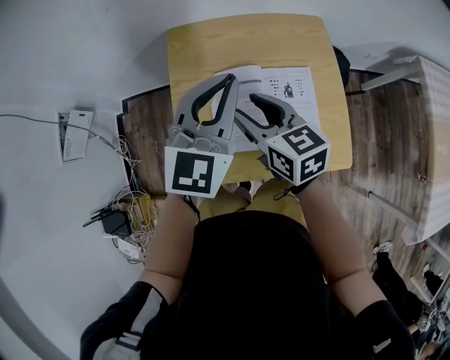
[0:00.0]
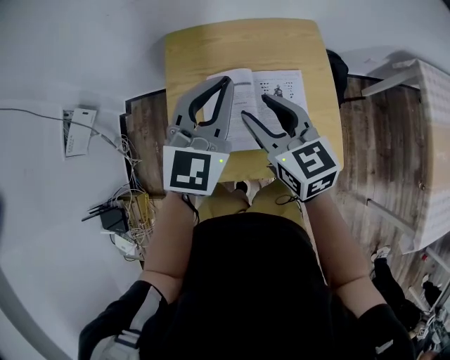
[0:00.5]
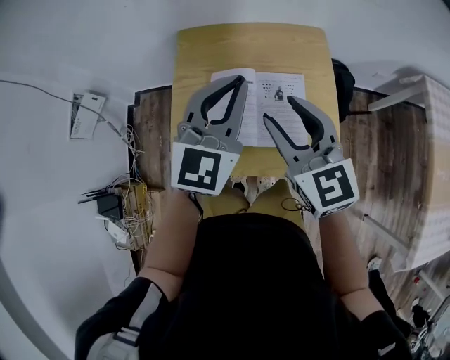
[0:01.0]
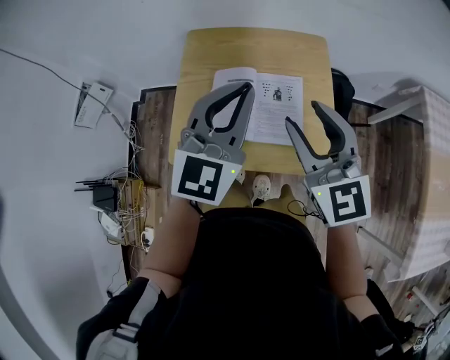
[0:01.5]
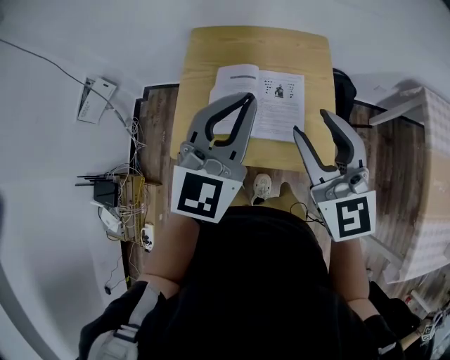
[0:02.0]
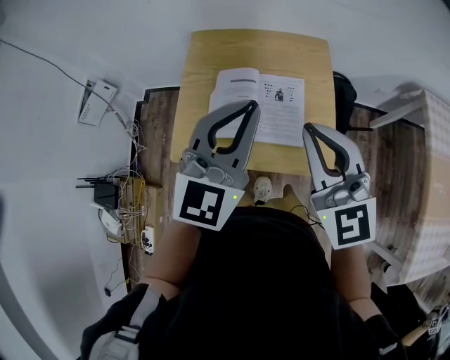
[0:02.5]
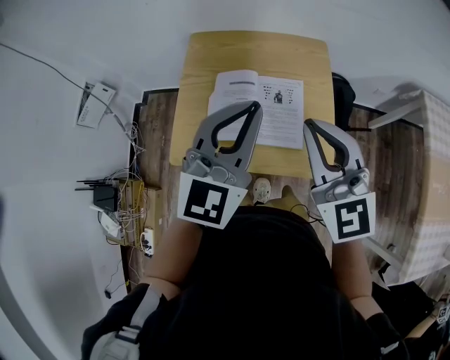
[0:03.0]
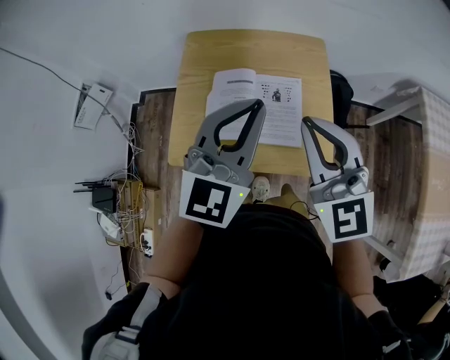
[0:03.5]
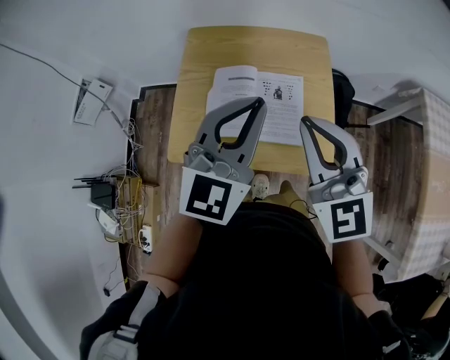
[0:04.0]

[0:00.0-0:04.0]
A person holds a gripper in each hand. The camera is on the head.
0:00.0 to 0:02.0: The left gripper travels backward, to the right and upward by some 15 cm. The right gripper is displaced to the right, upward and backward by some 25 cm, and swivels some 40 degrees.
0:02.0 to 0:04.0: The right gripper closes its fingers.

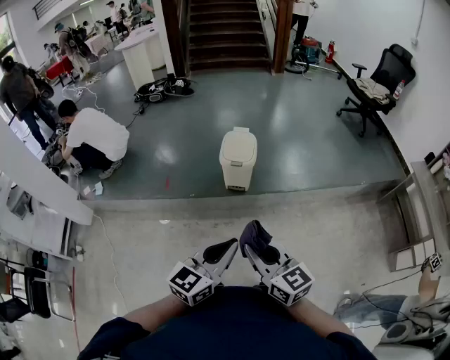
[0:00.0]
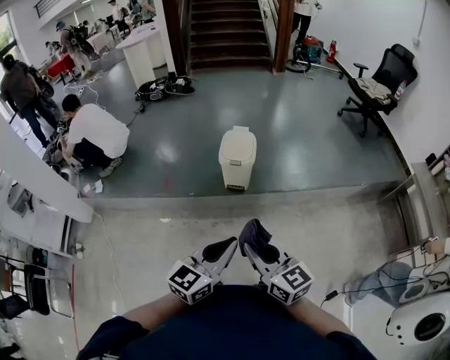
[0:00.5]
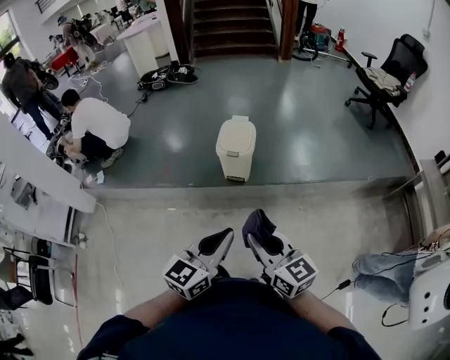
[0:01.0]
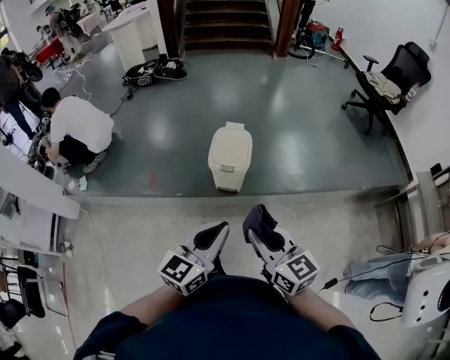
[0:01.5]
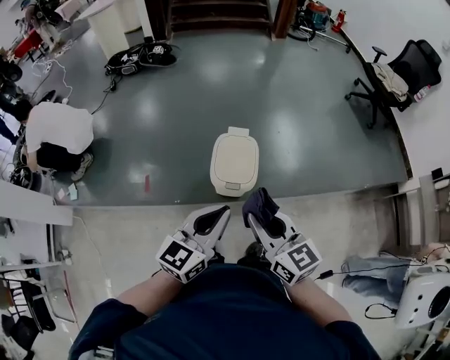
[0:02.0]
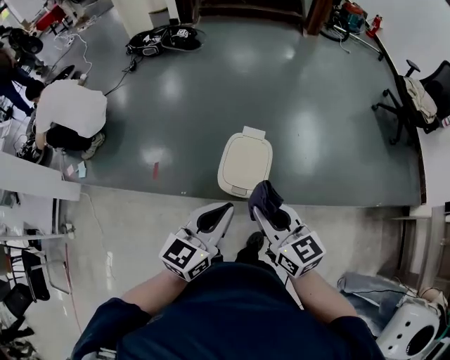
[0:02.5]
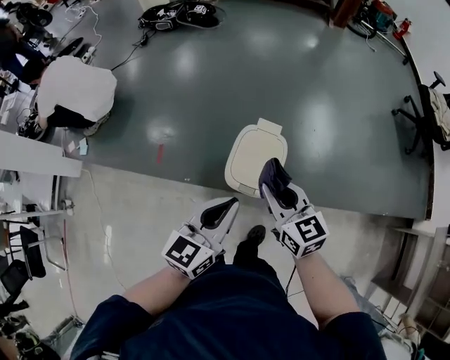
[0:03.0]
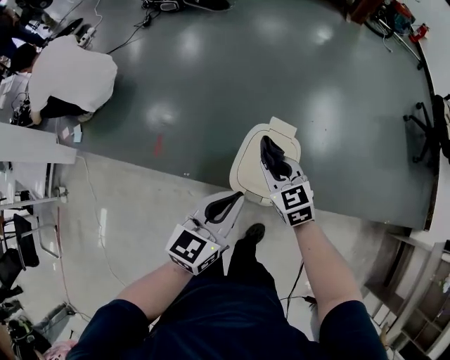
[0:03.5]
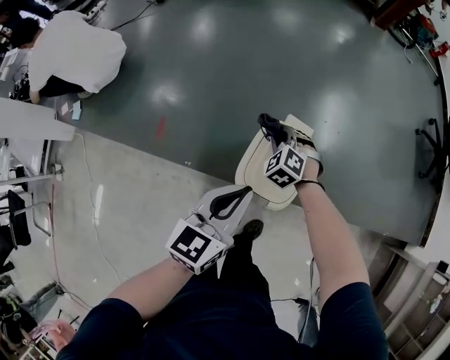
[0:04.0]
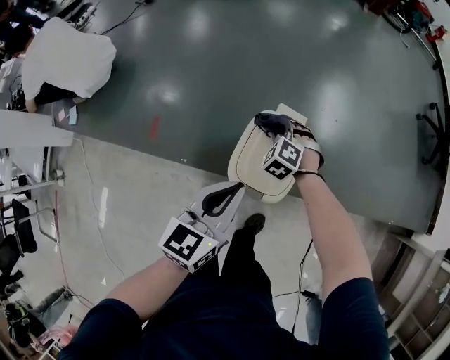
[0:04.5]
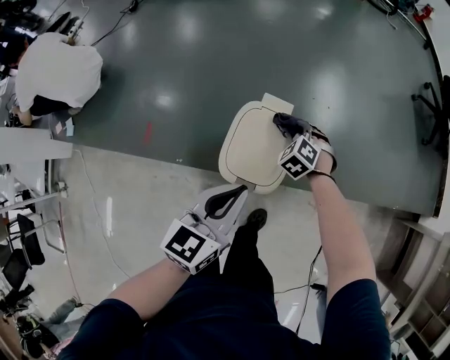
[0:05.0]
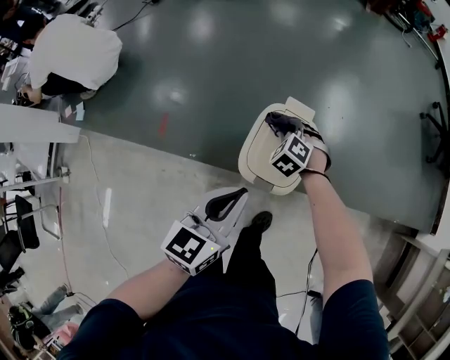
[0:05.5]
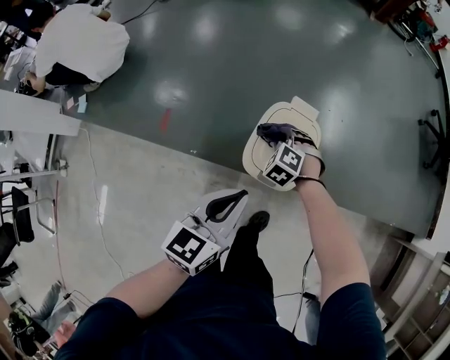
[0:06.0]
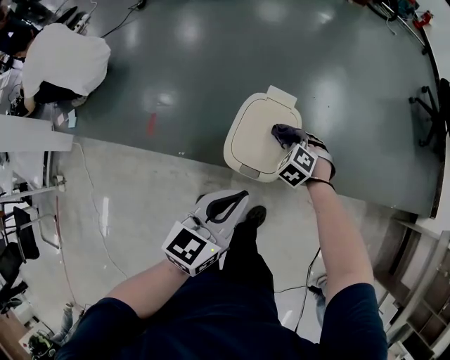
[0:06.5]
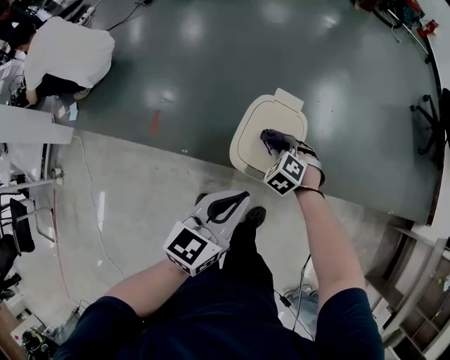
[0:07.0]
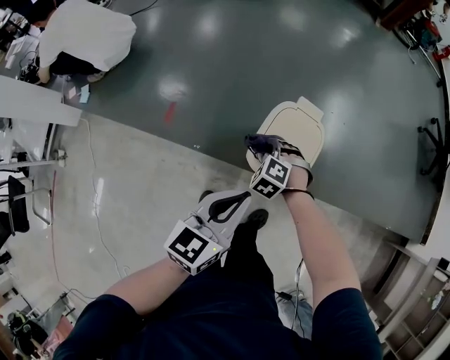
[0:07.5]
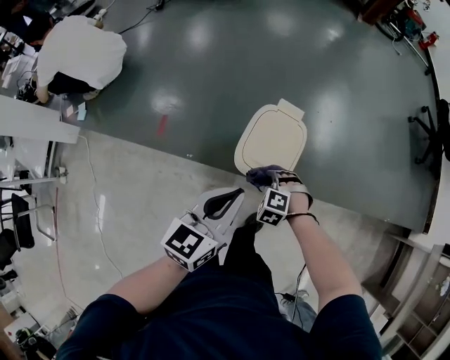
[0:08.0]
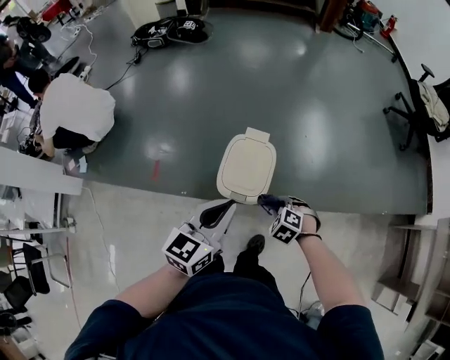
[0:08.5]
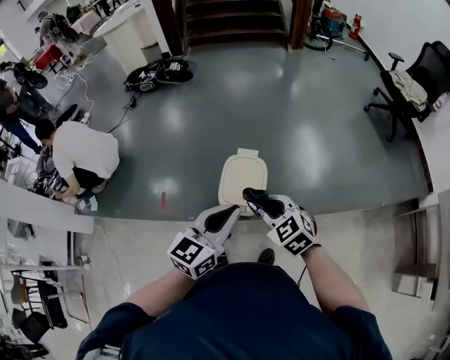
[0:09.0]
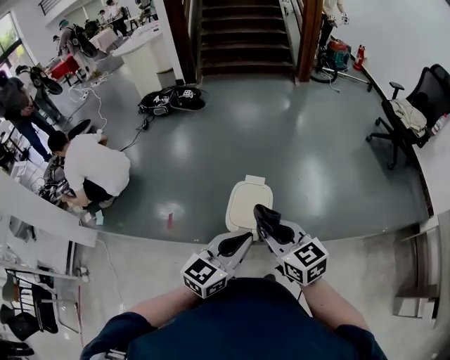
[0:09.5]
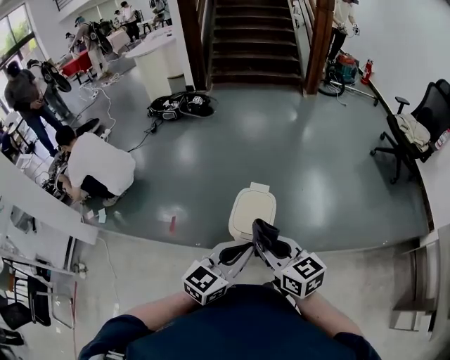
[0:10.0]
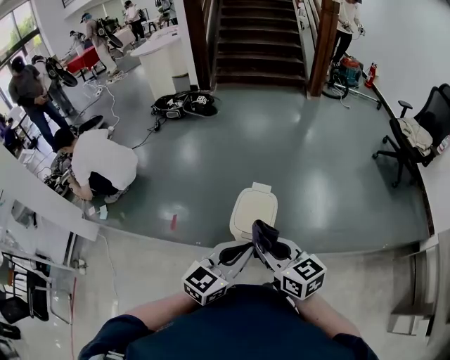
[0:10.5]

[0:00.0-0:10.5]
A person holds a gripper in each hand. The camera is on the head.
0:00.0 to 0:02.0: Both grippers travel together forward, about 40 cm.
0:02.0 to 0:04.0: The right gripper goes about 50 cm forward and downward, and rolls counterclockwise, seen from behind, by some 60 degrees; the left gripper is displaced forward and downward by about 25 cm, and turns by approximately 20 degrees.
0:04.0 to 0:06.5: The right gripper moves left and right over about 15 cm, changing direction 2 times. The left gripper goes about 10 cm backward and to the right.
0:06.5 to 0:08.5: The left gripper heads upward, covering approximately 10 cm. The right gripper shifts some 15 cm backward and upward, and moves some 15 cm to the left and comes back.
0:08.5 to 0:10.5: The left gripper goes about 15 cm backward and upward, while the right gripper moves upward, about 35 cm, and tilts its fingers approximately 50 degrees upward.

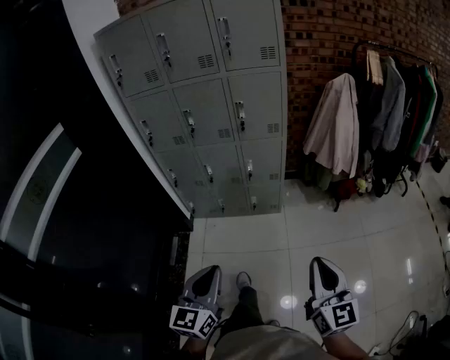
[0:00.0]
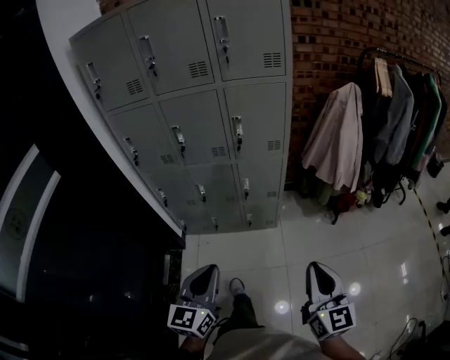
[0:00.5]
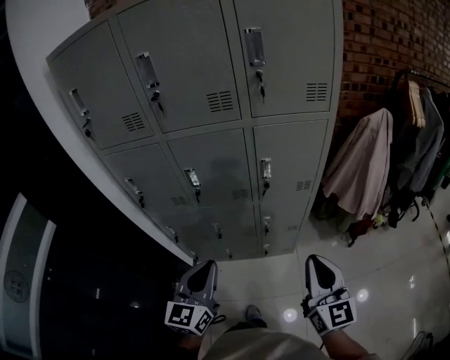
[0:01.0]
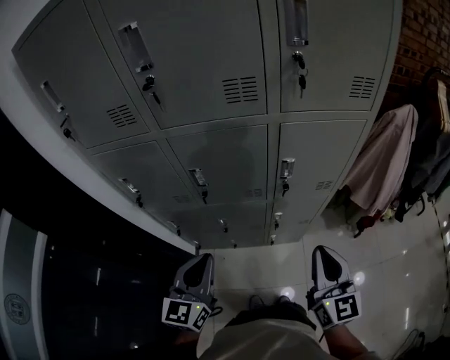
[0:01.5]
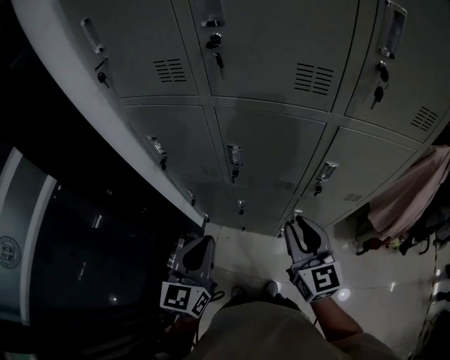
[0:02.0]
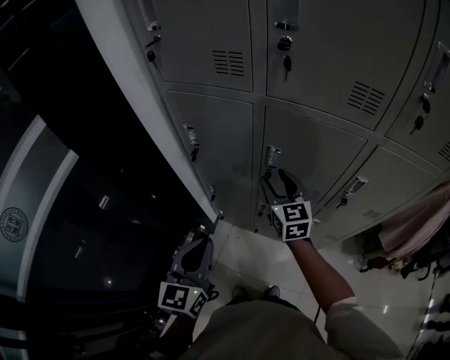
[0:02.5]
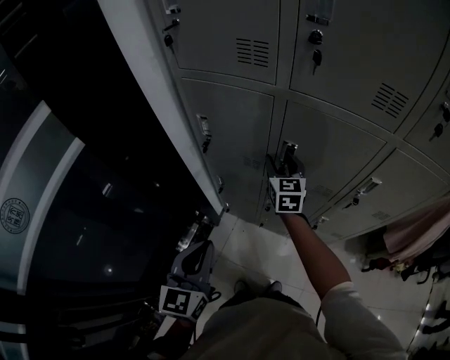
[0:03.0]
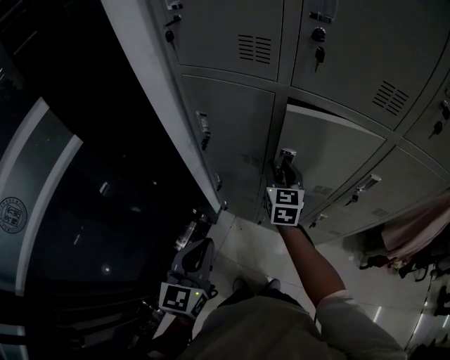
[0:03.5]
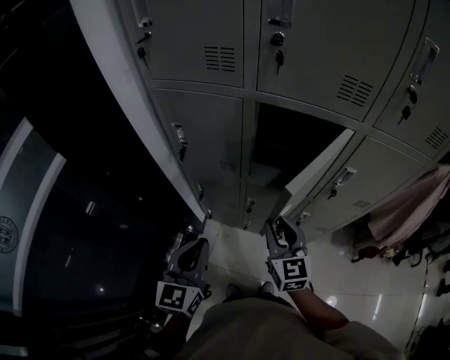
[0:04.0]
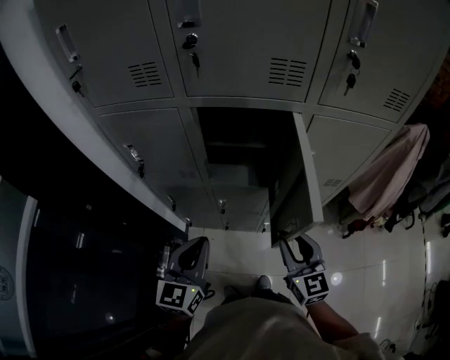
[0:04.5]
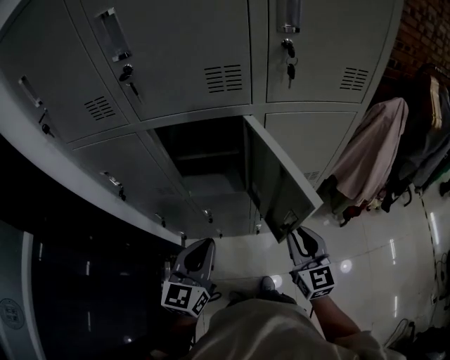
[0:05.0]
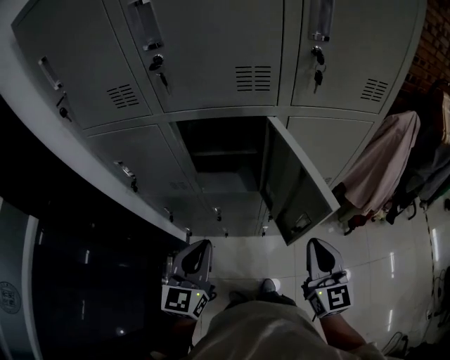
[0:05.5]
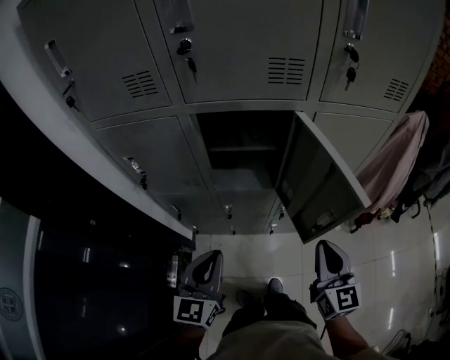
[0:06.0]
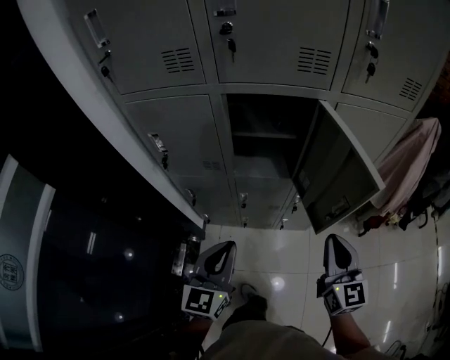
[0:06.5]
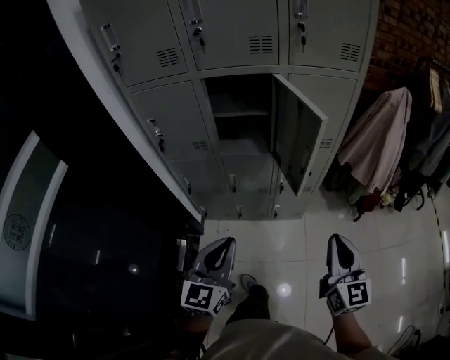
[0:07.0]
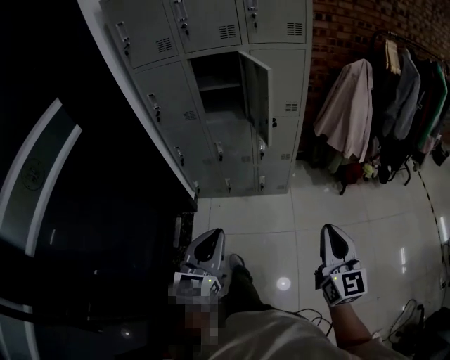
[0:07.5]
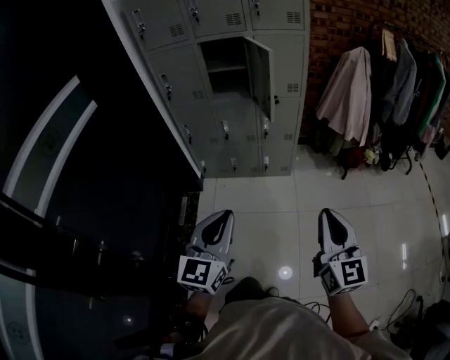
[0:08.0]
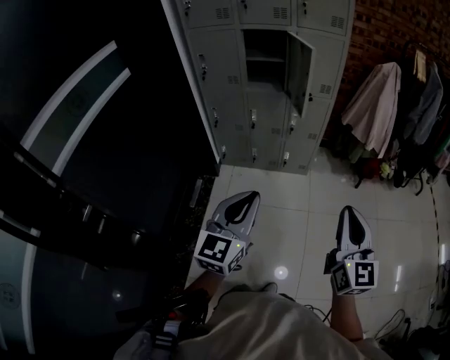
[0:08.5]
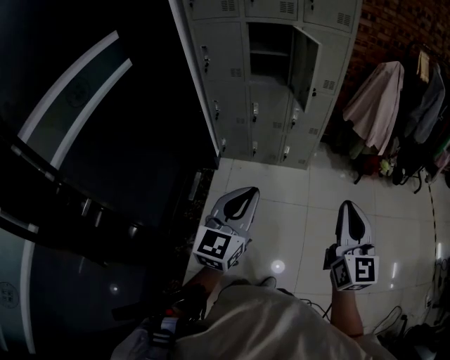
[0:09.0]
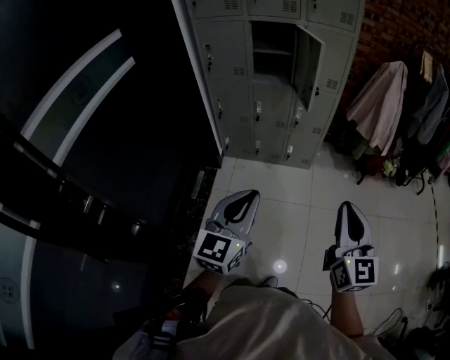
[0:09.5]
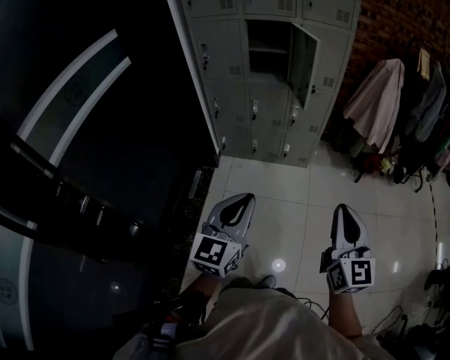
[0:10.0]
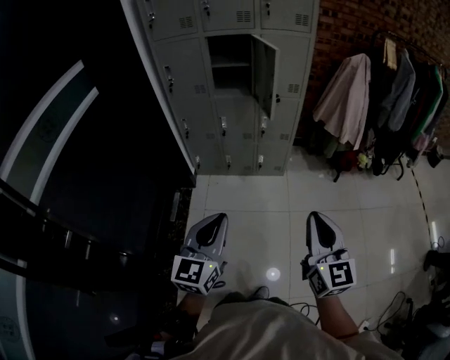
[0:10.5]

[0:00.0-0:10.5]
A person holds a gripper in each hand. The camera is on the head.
0:00.0 to 0:02.0: Both grippers are carried forward and to the left, roughly 70 cm. The right gripper swivels approximately 30 degrees, and opens its fingers.
0:02.0 to 0:04.0: The right gripper goes approximately 10 cm to the left and downward, and goes forward and returns, some 25 cm each way, while the left gripper heads to the left, covering about 10 cm.
0:04.0 to 0:06.5: The right gripper shifts some 20 cm to the right and backward, and closes, while the left gripper heads to the right, covering some 10 cm.
0:06.5 to 0:08.5: The two grippers travel together, backward, approximately 60 cm.
0:08.5 to 0:10.5: There are only small adjustments of the grippers.

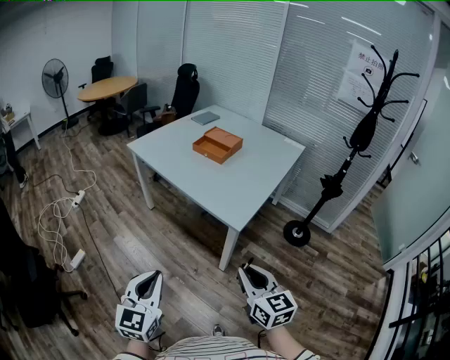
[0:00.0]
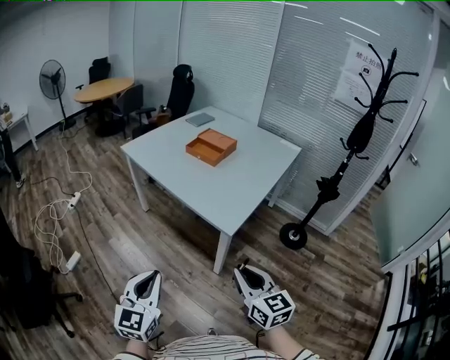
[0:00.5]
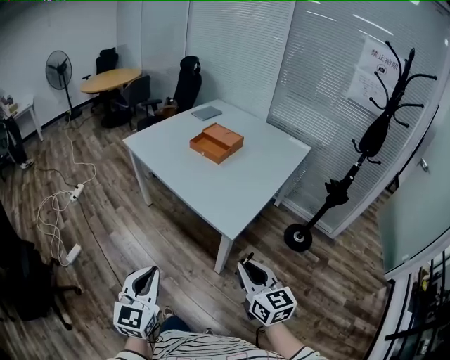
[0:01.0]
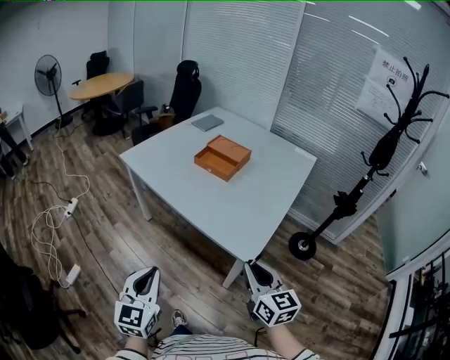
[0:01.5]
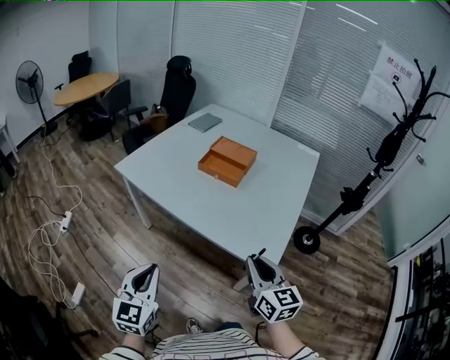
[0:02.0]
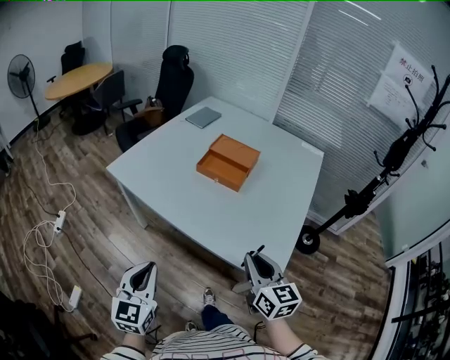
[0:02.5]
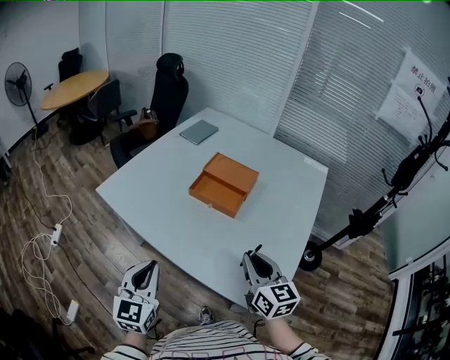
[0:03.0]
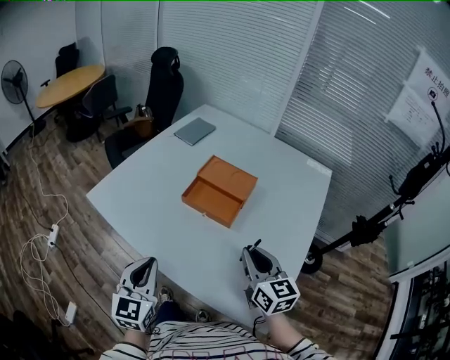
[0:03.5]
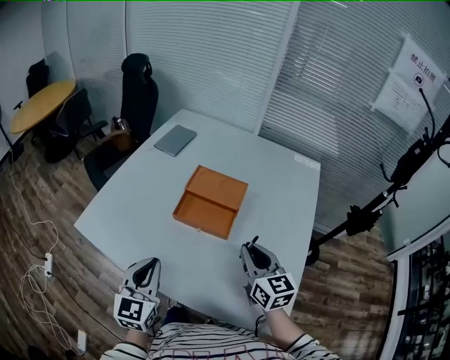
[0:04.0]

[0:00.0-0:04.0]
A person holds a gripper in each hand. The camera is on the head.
0:00.0 to 0:02.0: The two grippers go some 30 cm forward.
0:02.0 to 0:04.0: The grippers both shift forward by about 40 cm.
